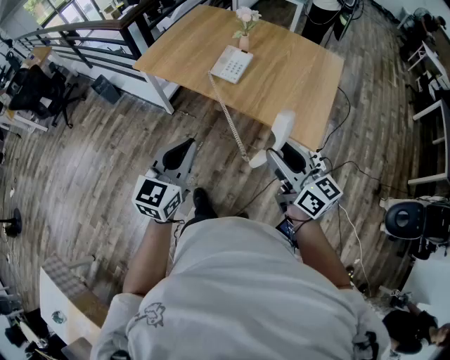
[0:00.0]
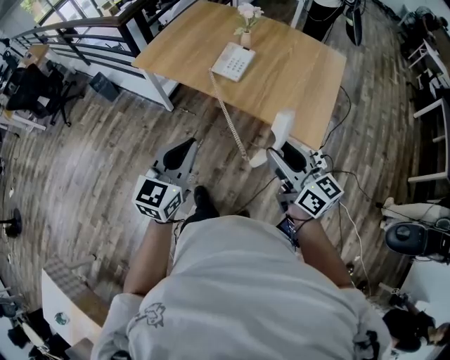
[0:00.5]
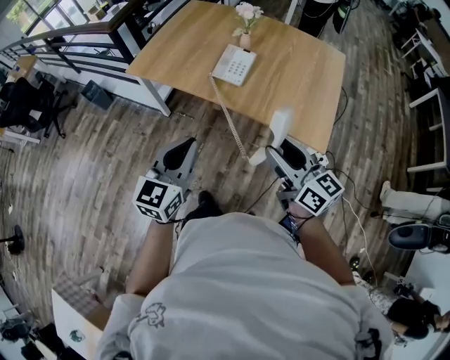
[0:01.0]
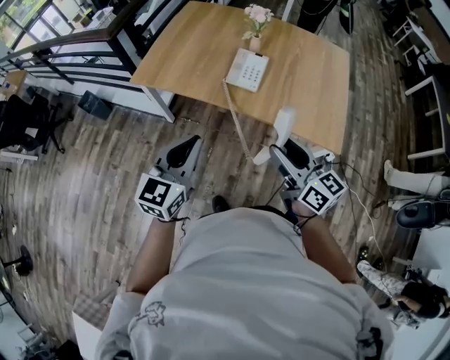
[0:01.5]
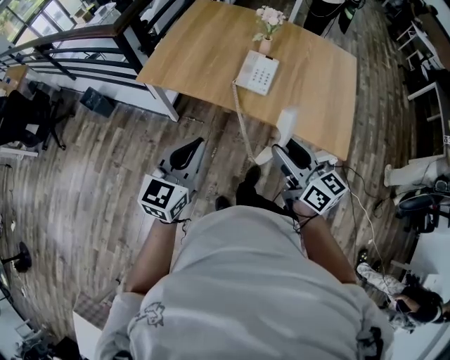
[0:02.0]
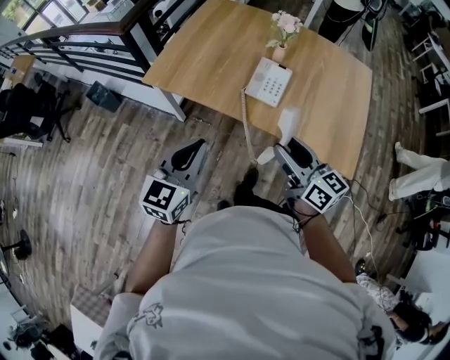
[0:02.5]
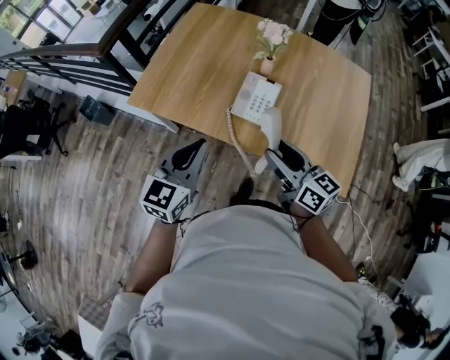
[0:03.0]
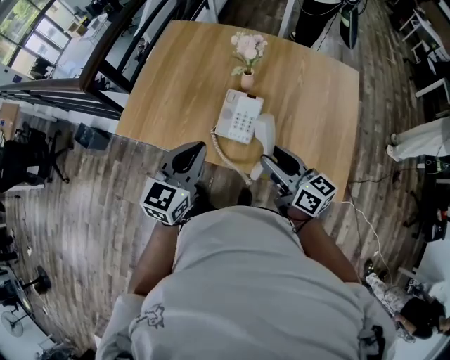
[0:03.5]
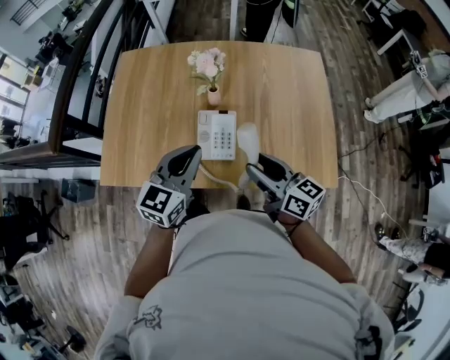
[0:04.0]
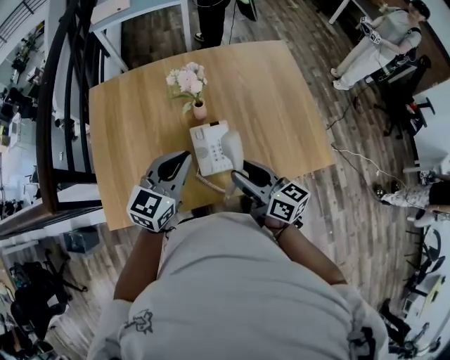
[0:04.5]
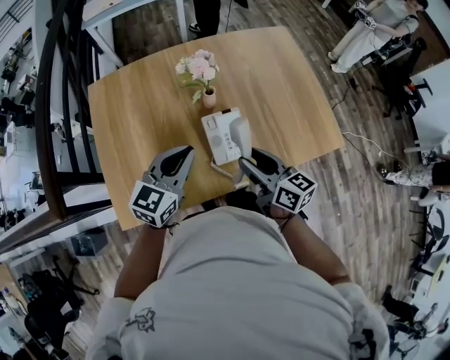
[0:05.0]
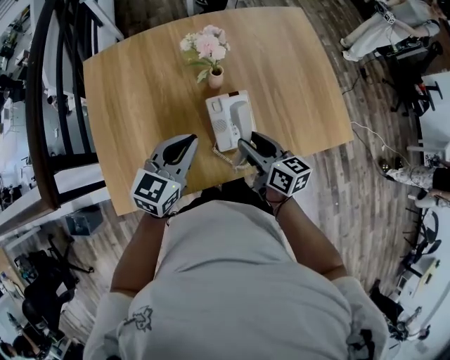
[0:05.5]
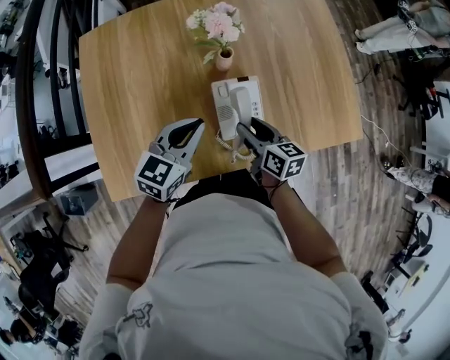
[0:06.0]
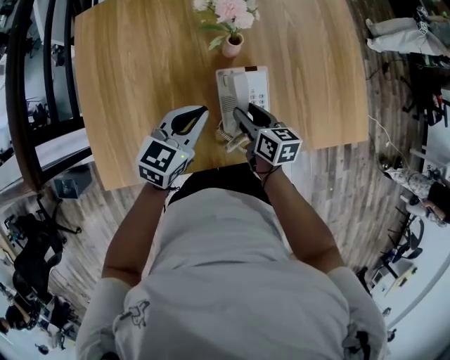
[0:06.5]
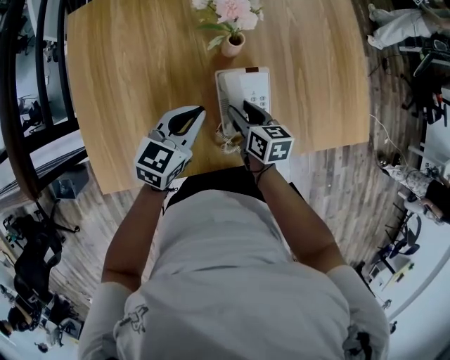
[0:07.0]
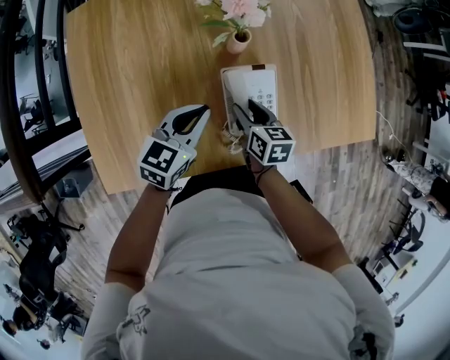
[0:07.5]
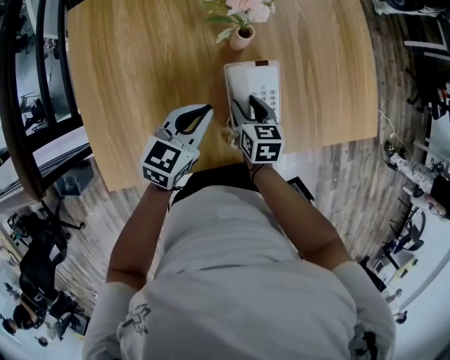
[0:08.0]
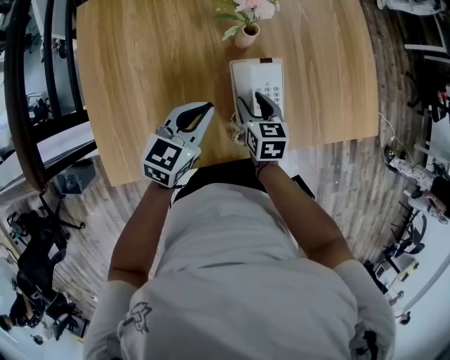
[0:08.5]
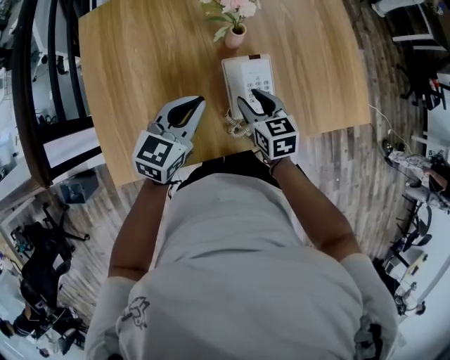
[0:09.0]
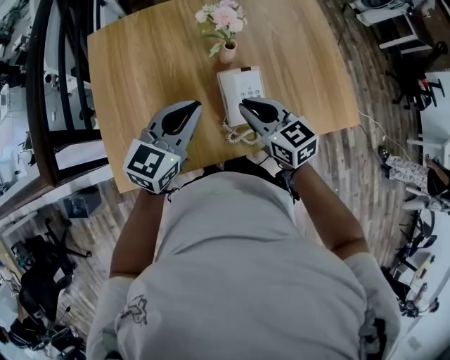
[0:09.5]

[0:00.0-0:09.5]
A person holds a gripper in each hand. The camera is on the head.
0:00.0 to 0:02.0: Both grippers move to the left and forward, roughly 25 cm.
0:02.0 to 0:04.0: The right gripper moves forward, some 25 cm. The left gripper is displaced forward and to the right by about 35 cm, and changes its angle by approximately 20 degrees.
0:04.0 to 0:05.5: The left gripper heads to the left, downward and forward, covering about 15 cm, and changes its angle by approximately 20 degrees; the right gripper goes roughly 15 cm to the left and downward, and swivels about 30 degrees.
0:05.5 to 0:07.5: The left gripper moves downward and forward, approximately 15 cm; the right gripper shifts about 15 cm downward, and rotates about 20 degrees.
0:07.5 to 0:09.5: The two grippers go approximately 20 cm upward. The right gripper changes its angle by roughly 30 degrees, and closes up.

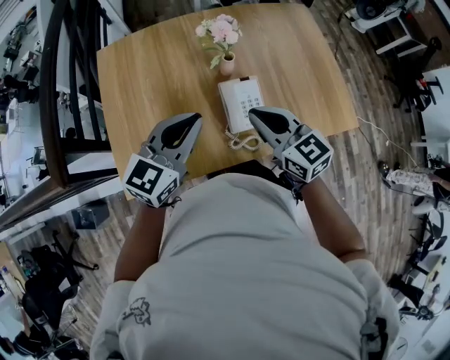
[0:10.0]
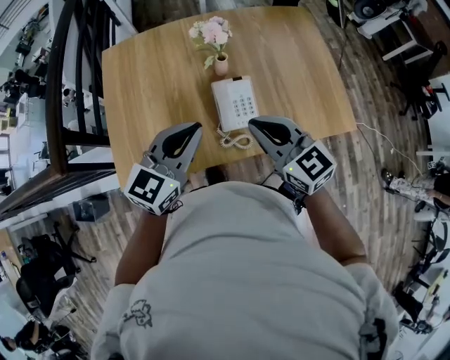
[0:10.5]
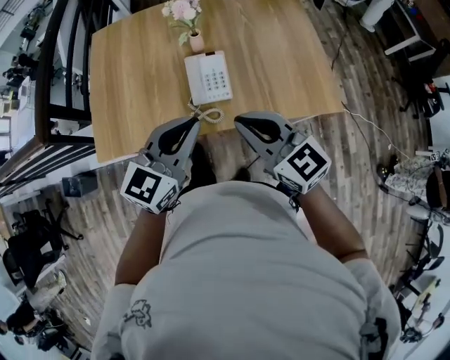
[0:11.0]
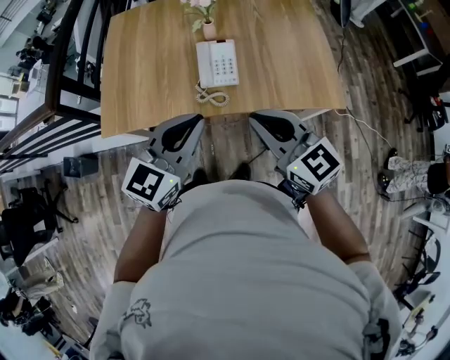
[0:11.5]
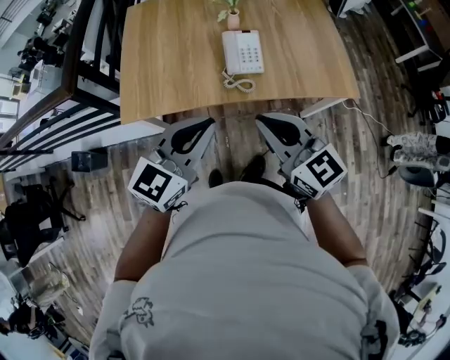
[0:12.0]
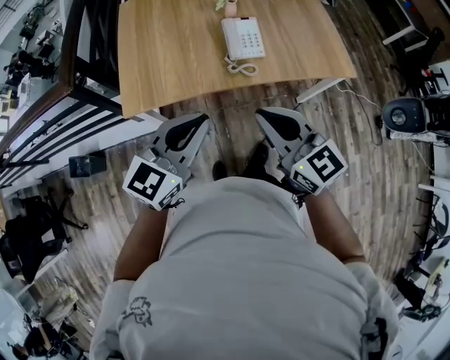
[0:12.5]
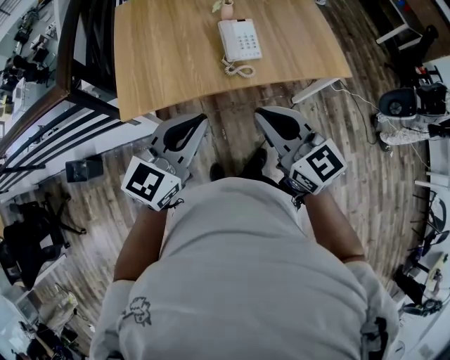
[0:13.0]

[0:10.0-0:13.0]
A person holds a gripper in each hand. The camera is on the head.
0:10.0 to 0:11.5: Both grippers travel together backward and to the right, about 25 cm.
0:11.5 to 0:13.0: The two grippers go some 20 cm to the left and backward.

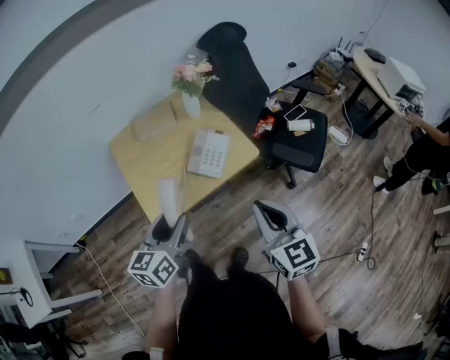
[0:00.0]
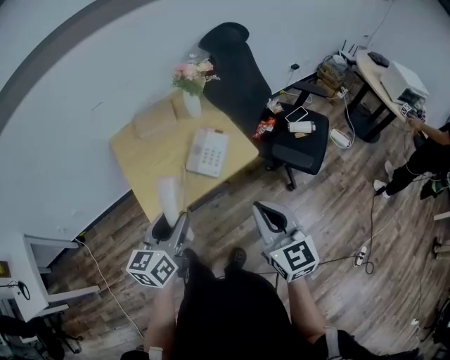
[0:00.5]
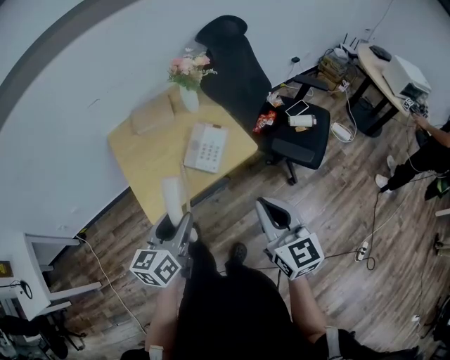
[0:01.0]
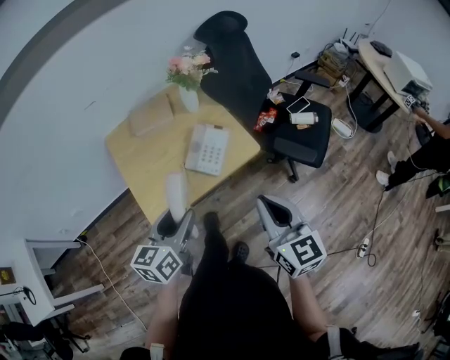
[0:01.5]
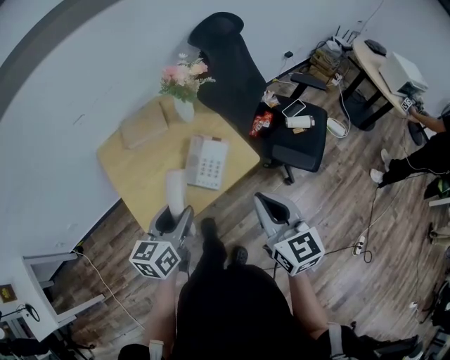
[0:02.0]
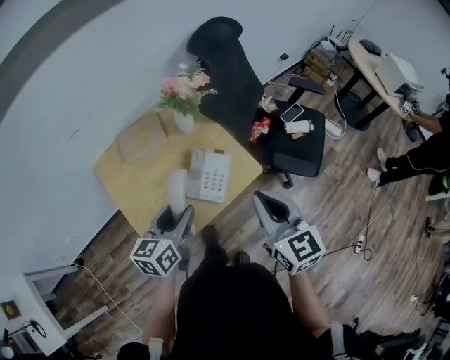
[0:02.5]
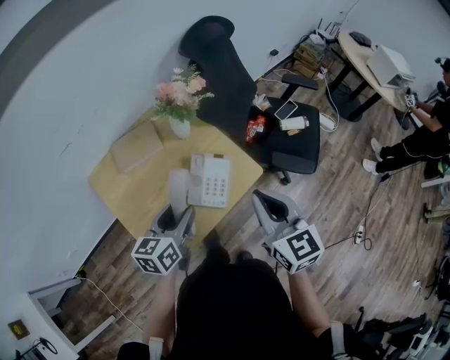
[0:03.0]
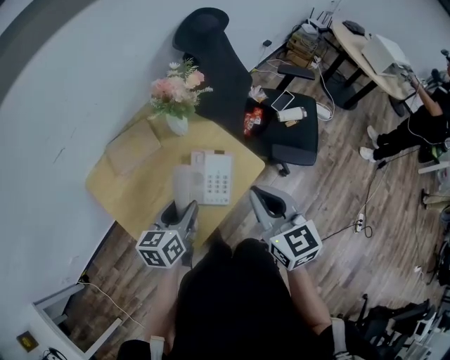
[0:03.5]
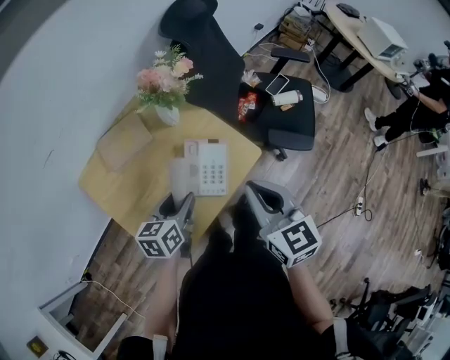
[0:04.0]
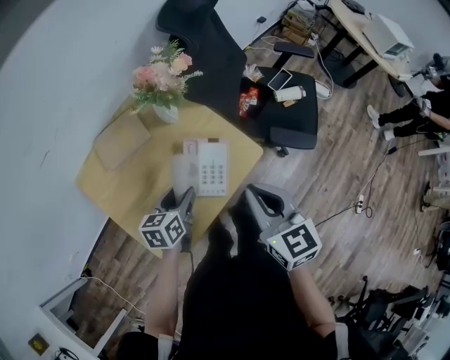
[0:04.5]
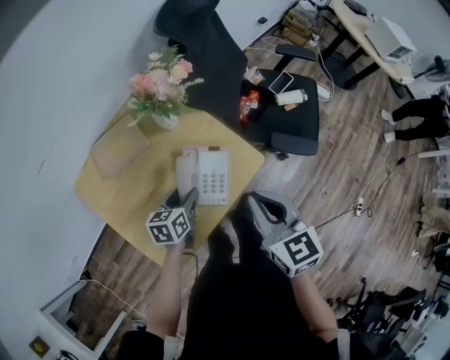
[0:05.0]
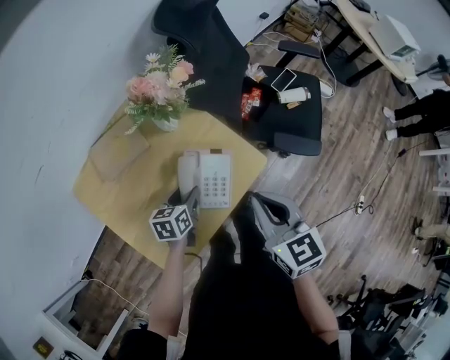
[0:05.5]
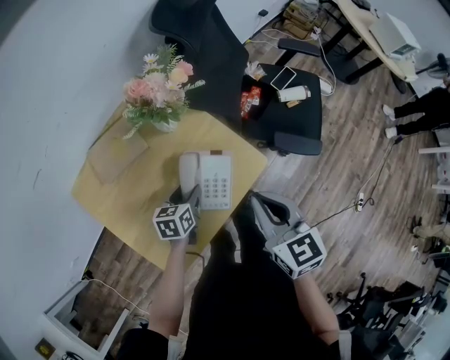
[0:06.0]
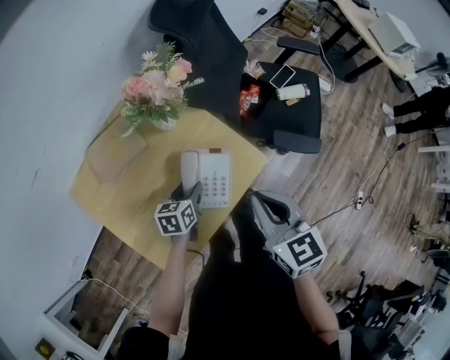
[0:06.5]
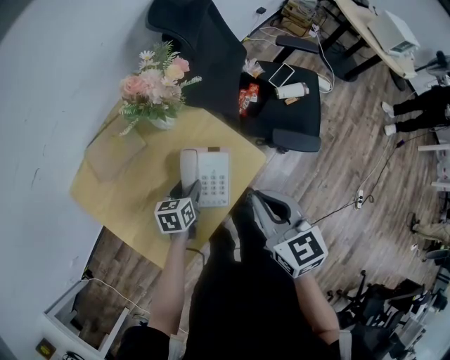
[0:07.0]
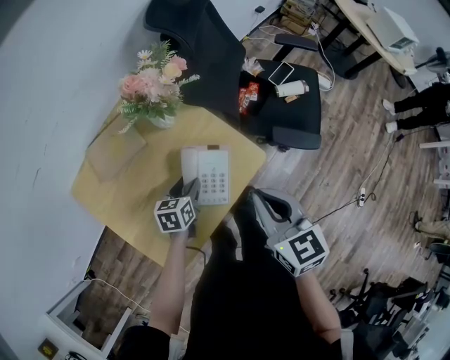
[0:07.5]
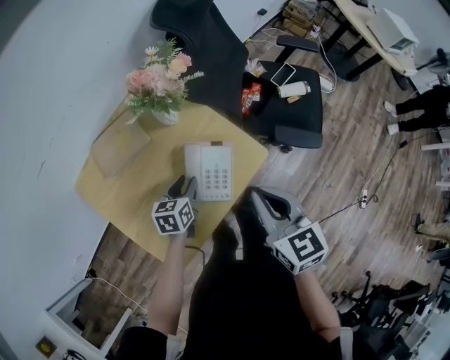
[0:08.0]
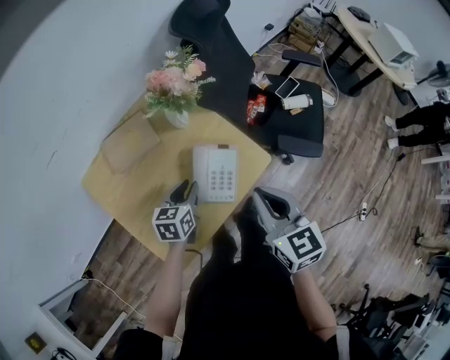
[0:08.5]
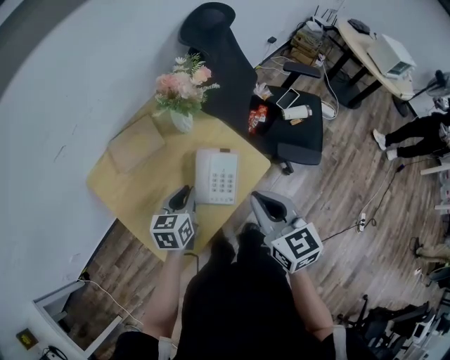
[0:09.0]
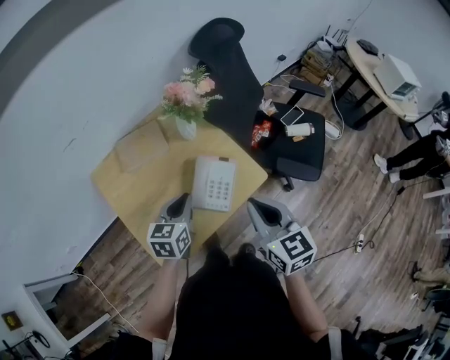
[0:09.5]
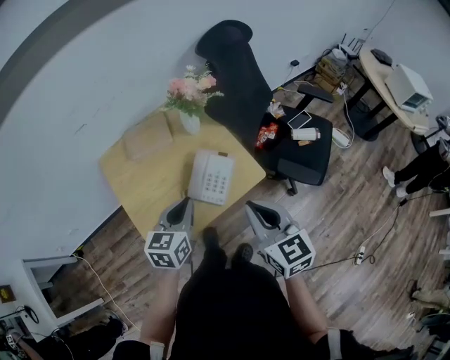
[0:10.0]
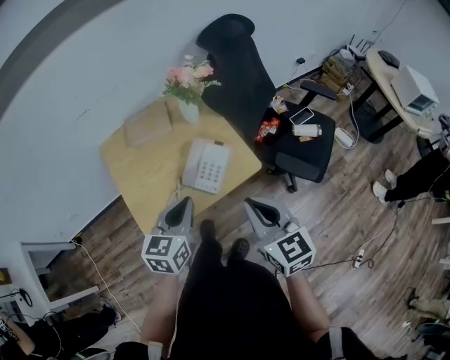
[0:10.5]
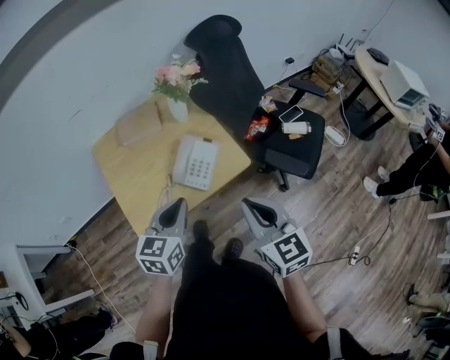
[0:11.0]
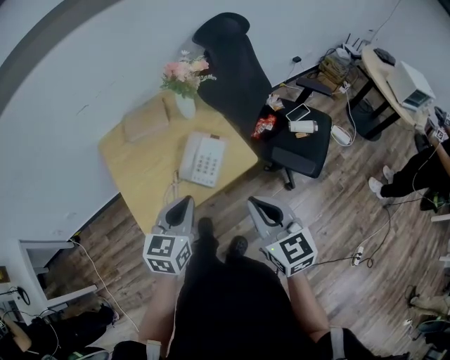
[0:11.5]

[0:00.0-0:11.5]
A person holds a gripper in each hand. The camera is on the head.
0:00.0 to 0:02.0: Both grippers travel together forward, some 10 cm.
0:02.0 to 0:04.0: The right gripper shifts roughly 10 cm forward and to the left, while the left gripper moves forward and downward, some 15 cm.
0:04.0 to 0:06.0: The right gripper travels forward and downward by approximately 10 cm; the left gripper heads downward and forward, covering some 15 cm.
0:06.0 to 0:07.5: The grippers move only a little.
0:07.5 to 0:09.5: The left gripper heads upward and backward, covering about 20 cm, and closes its fingers. The right gripper shifts some 5 cm backward.
0:09.5 to 0:11.5: The left gripper heads backward, upward and to the right, covering about 20 cm. Meanwhile the right gripper is displaced backward and to the right by roughly 15 cm.

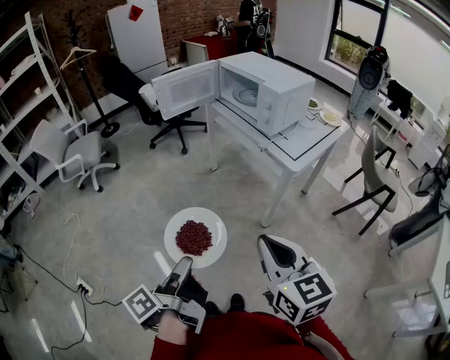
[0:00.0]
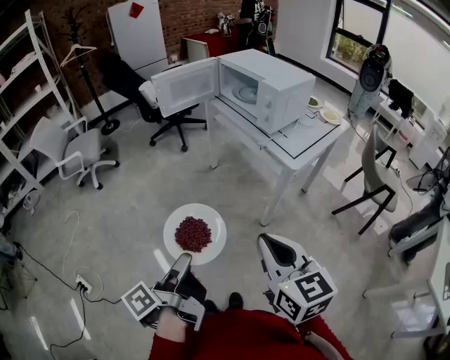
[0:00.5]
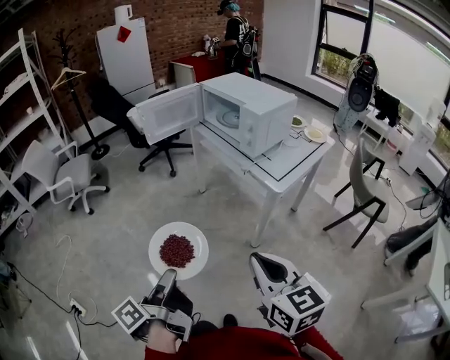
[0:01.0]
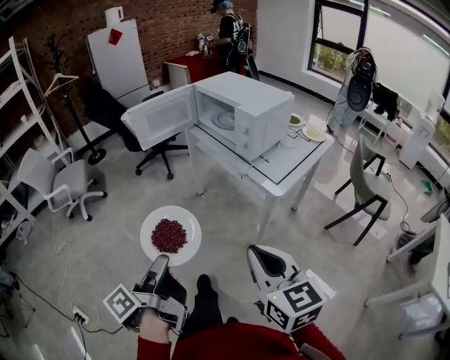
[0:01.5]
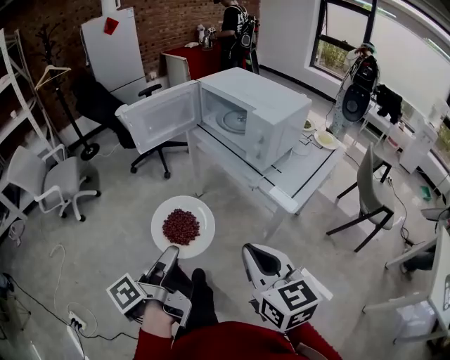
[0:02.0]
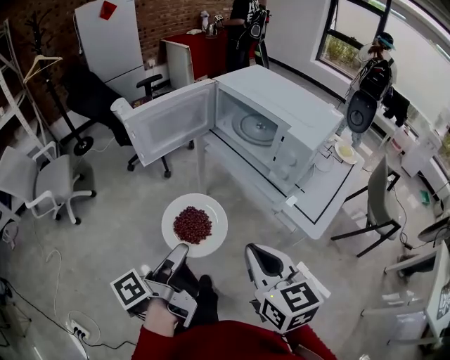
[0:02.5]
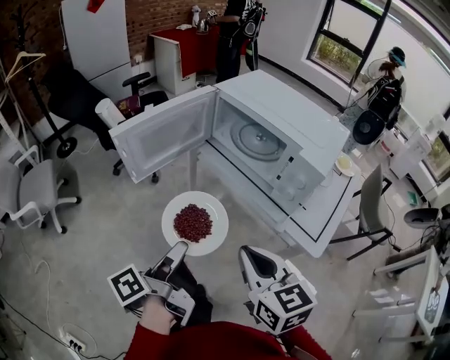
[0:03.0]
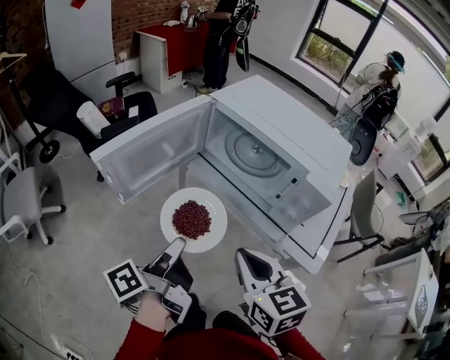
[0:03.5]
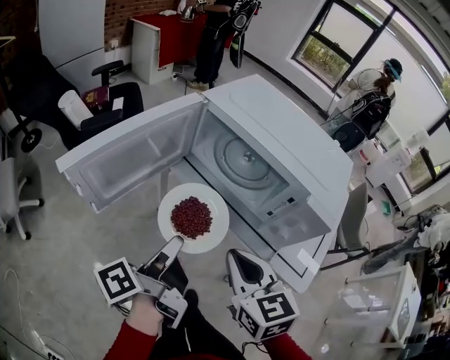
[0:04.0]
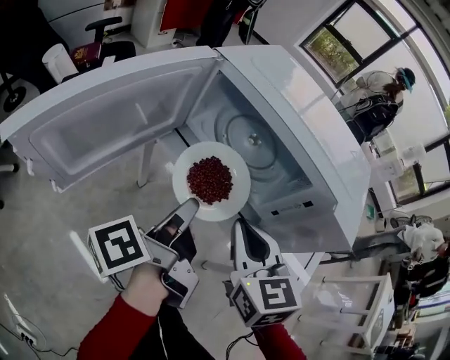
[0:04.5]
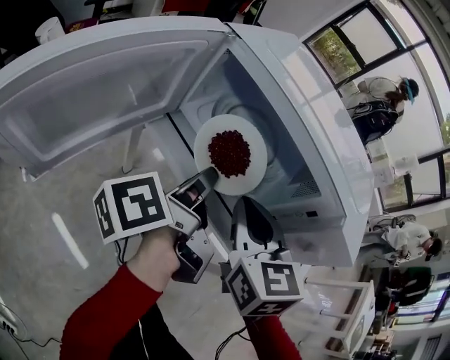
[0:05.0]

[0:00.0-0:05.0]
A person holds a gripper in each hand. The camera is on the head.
0:00.0 to 0:02.5: Both grippers move forward, about 30 cm.
0:02.5 to 0:05.0: Both grippers move forward, roughly 35 cm. The left gripper swivels approximately 20 degrees. Meanwhile the right gripper changes its angle by about 30 degrees.
